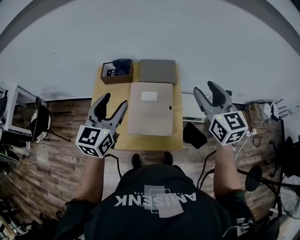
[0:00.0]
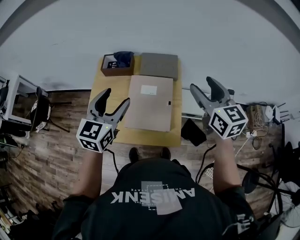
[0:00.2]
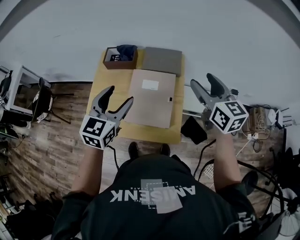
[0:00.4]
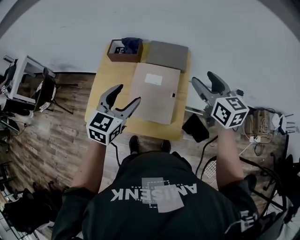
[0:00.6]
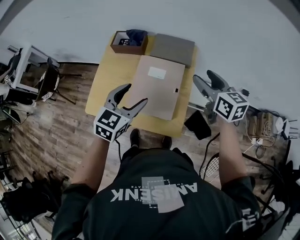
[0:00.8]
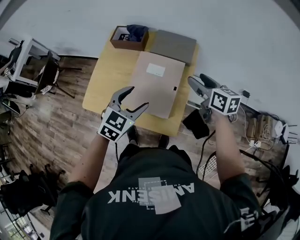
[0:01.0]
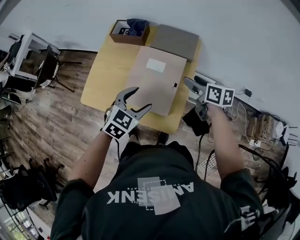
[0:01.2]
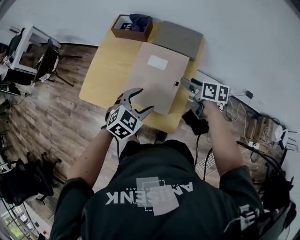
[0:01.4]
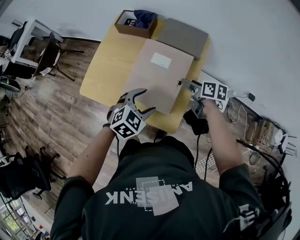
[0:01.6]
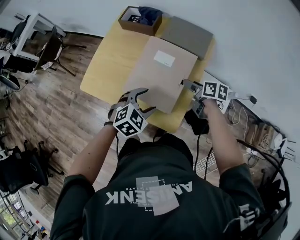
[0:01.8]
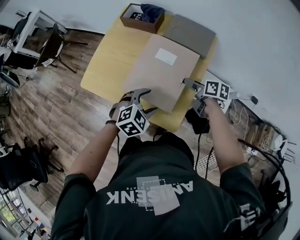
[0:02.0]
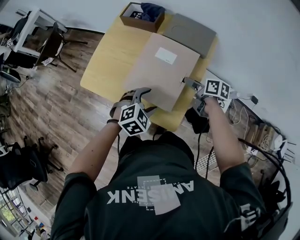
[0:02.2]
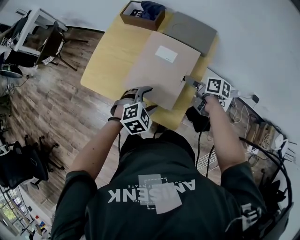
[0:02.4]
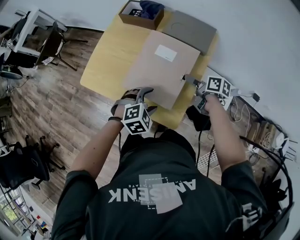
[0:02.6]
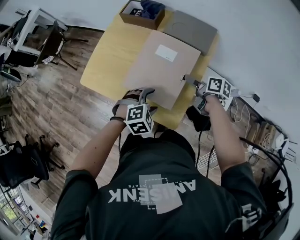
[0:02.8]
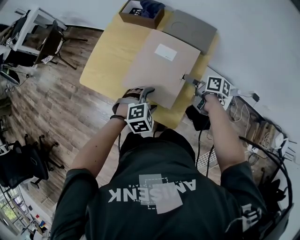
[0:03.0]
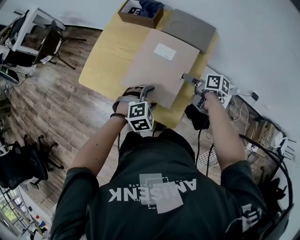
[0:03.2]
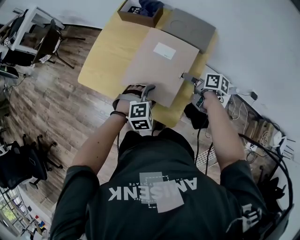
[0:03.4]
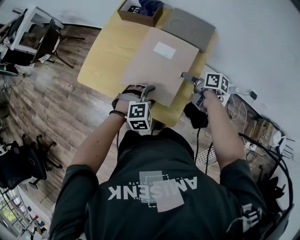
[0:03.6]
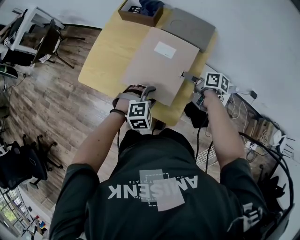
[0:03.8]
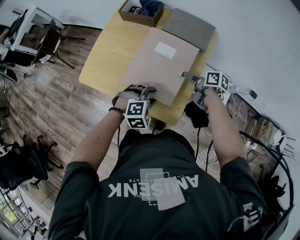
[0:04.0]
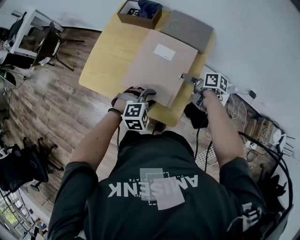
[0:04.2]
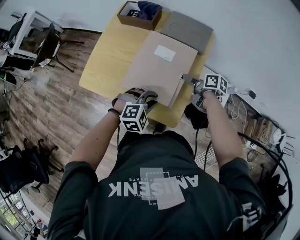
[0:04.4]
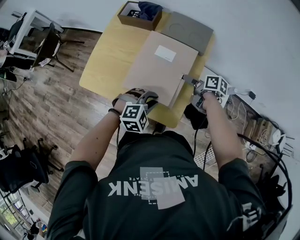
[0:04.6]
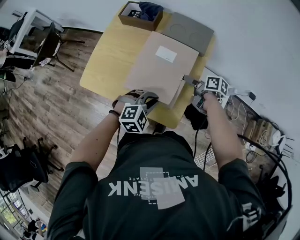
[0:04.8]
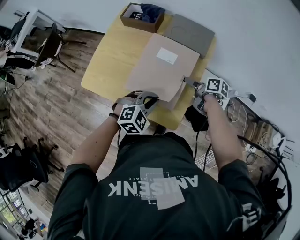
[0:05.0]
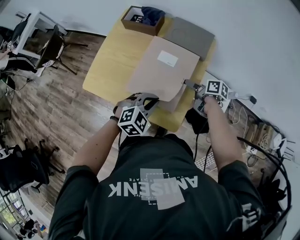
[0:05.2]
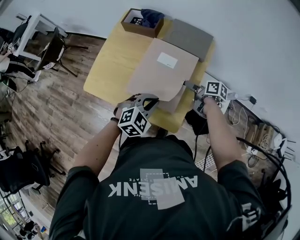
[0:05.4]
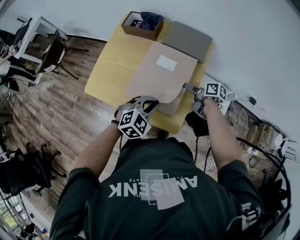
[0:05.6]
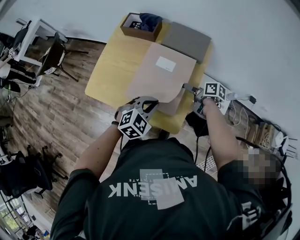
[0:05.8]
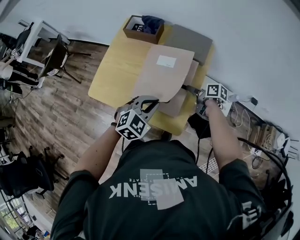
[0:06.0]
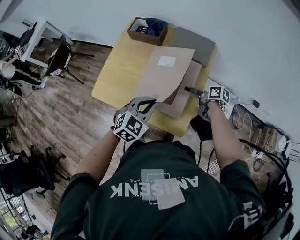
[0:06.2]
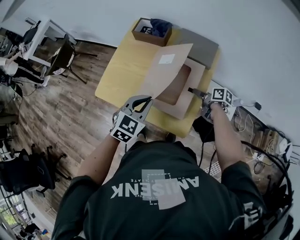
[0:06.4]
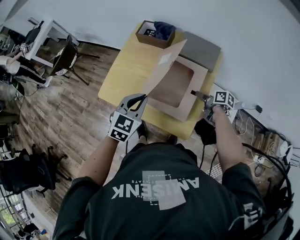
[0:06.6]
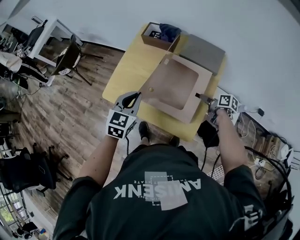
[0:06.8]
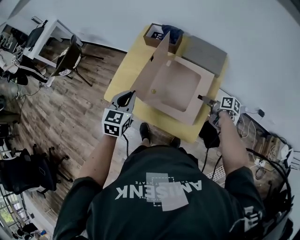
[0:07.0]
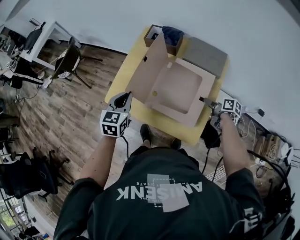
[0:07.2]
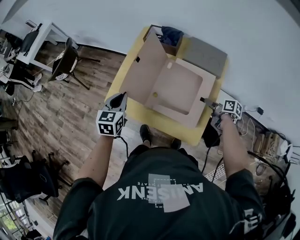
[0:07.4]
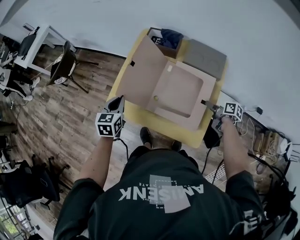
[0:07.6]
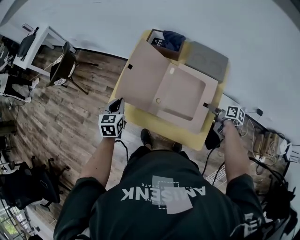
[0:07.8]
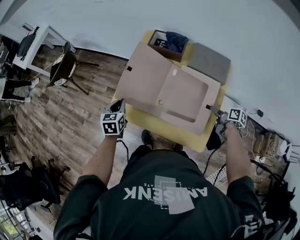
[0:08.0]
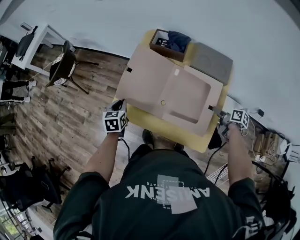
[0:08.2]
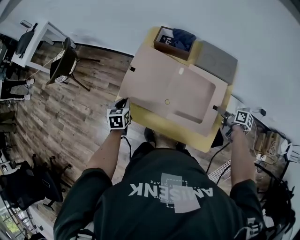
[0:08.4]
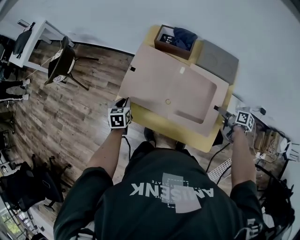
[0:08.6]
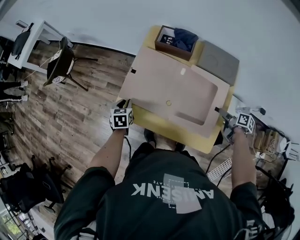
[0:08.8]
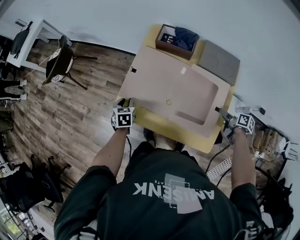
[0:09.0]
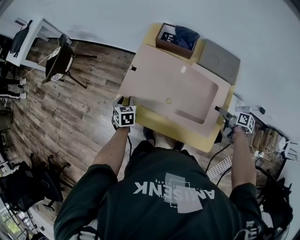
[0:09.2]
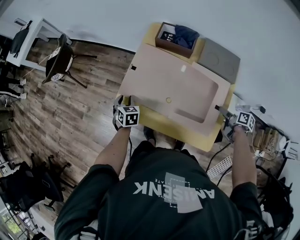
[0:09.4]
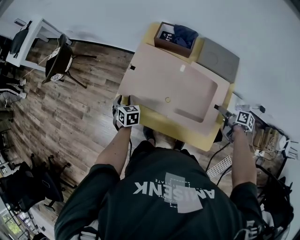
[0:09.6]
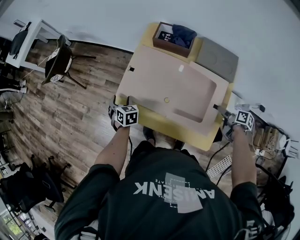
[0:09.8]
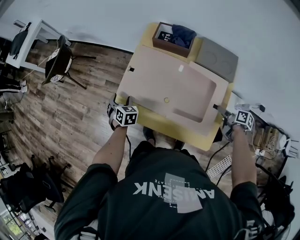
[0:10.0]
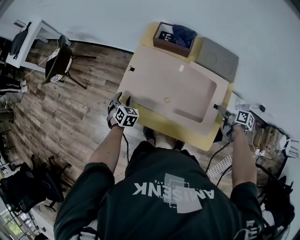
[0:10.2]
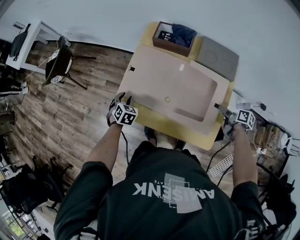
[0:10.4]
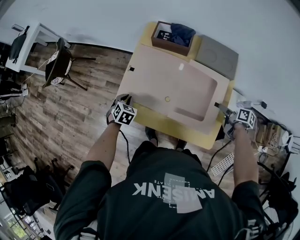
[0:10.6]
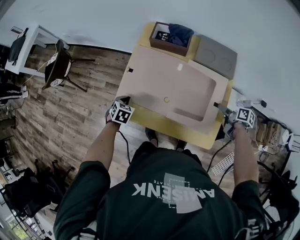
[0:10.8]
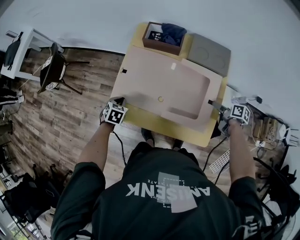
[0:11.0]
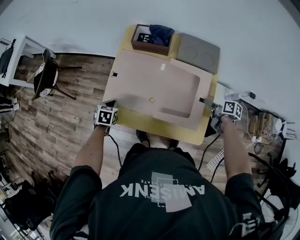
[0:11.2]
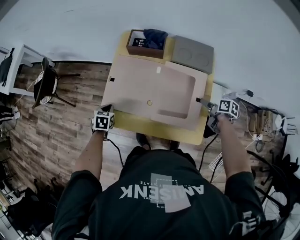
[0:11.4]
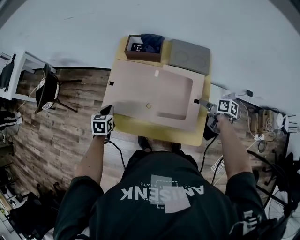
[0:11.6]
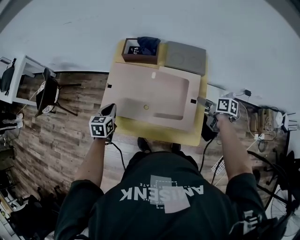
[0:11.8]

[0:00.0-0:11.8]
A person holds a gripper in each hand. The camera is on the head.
0:00.0 to 0:01.4: The right gripper shifts some 30 cm downward, and swivels approximately 60 degrees. The left gripper heads downward and to the right, covering some 25 cm, and angles its fingers downward, by approximately 40 degrees.
0:01.4 to 0:03.0: Both grippers move downward, some 10 cm. The left gripper rotates about 30 degrees.
0:03.0 to 0:04.4: The left gripper closes up.
0:04.4 to 0:06.0: The left gripper is displaced upward by about 10 cm, and rotates approximately 30 degrees.
0:06.0 to 0:07.4: The left gripper travels to the left and forward by approximately 25 cm, and turns by about 50 degrees.
0:07.4 to 0:08.8: The left gripper is displaced downward, to the left and forward by about 20 cm, and rotates some 20 degrees.
0:08.8 to 0:10.4: The left gripper rotates roughly 30 degrees, and opens and closes again.
0:10.4 to 0:11.8: The right gripper is displaced upward by roughly 5 cm, while the left gripper goes approximately 10 cm upward and to the right, rotates approximately 30 degrees, and closes its fingers.

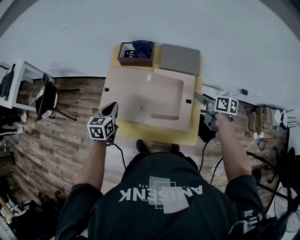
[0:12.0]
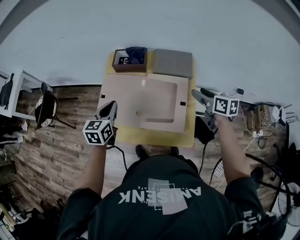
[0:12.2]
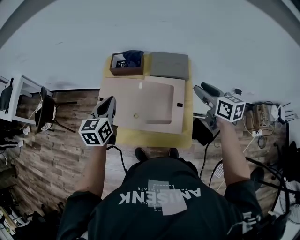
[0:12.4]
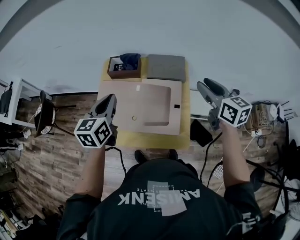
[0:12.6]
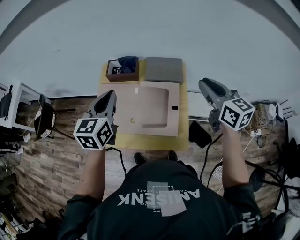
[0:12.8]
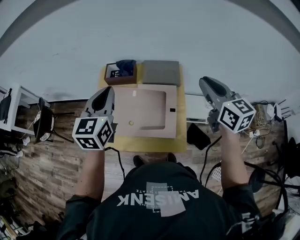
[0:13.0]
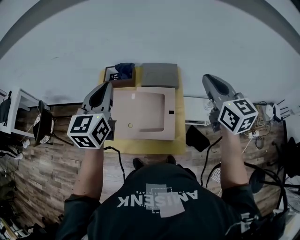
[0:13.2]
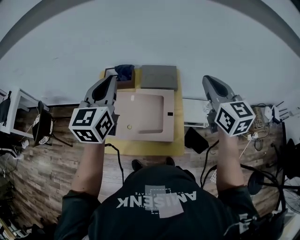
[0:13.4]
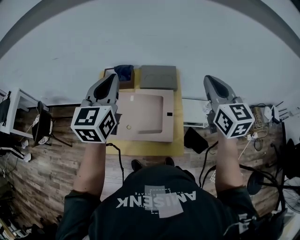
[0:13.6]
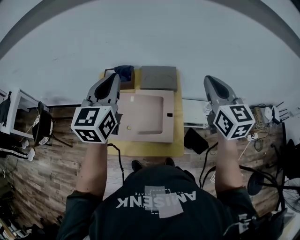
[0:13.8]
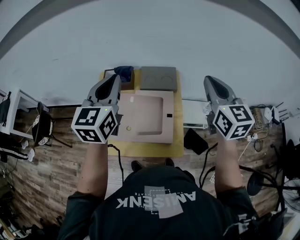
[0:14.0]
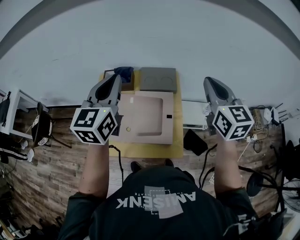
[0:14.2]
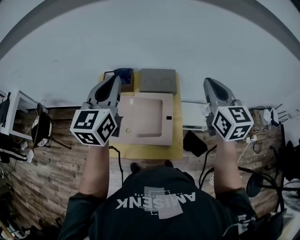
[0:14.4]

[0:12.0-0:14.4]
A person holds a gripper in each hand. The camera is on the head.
0:12.0 to 0:13.2: The right gripper travels upward by about 30 cm, turns by about 50 degrees, and closes up. The left gripper goes about 30 cm upward and to the right, and changes its angle by about 30 degrees.
0:13.2 to 0:14.4: The left gripper ends up approximately 5 cm from where it was.

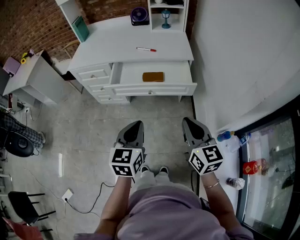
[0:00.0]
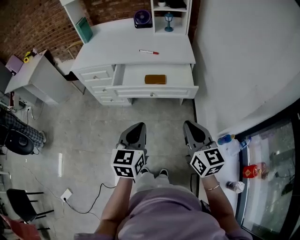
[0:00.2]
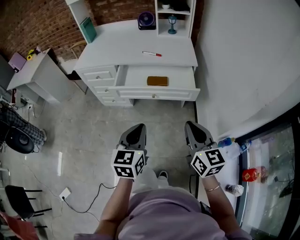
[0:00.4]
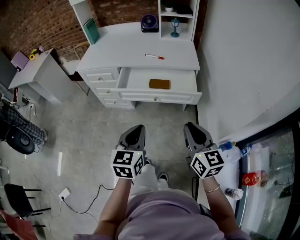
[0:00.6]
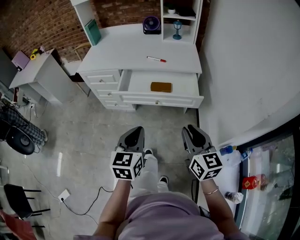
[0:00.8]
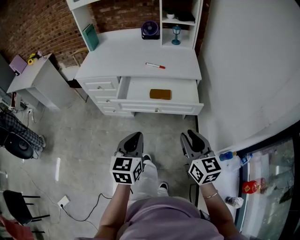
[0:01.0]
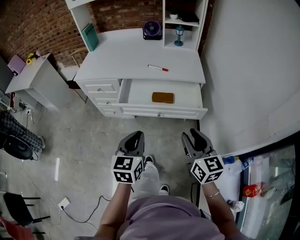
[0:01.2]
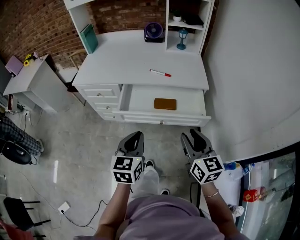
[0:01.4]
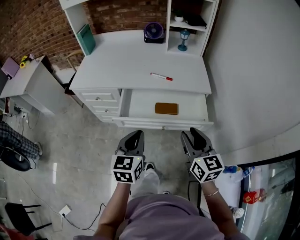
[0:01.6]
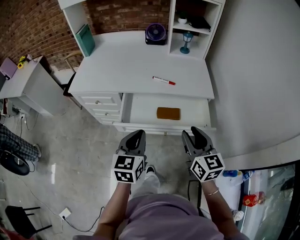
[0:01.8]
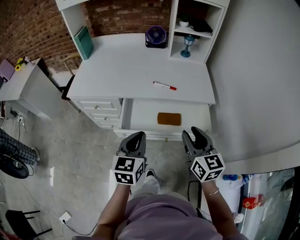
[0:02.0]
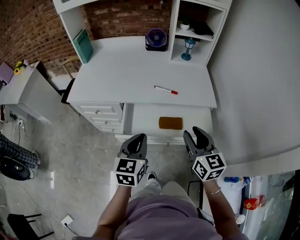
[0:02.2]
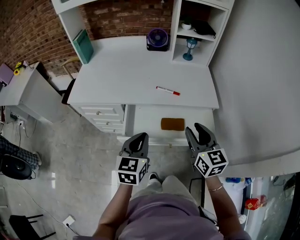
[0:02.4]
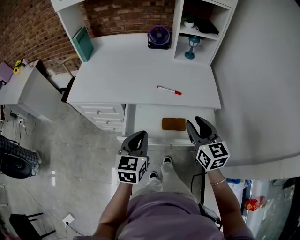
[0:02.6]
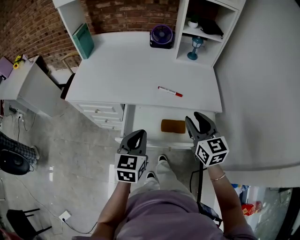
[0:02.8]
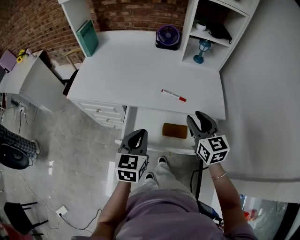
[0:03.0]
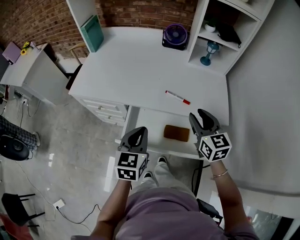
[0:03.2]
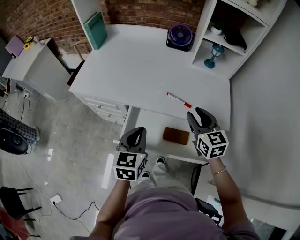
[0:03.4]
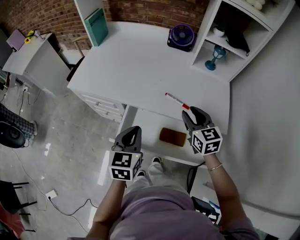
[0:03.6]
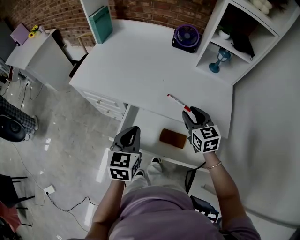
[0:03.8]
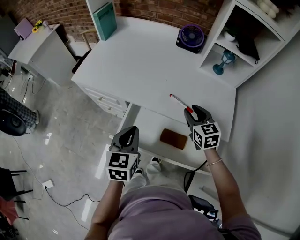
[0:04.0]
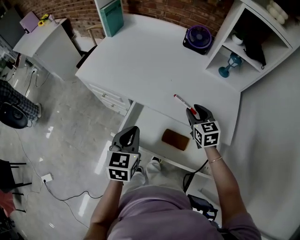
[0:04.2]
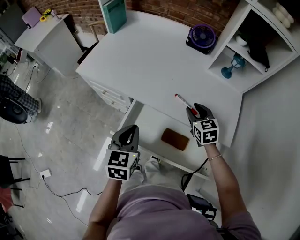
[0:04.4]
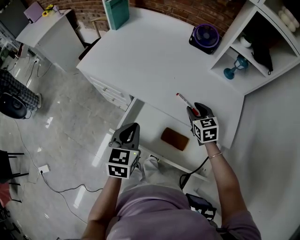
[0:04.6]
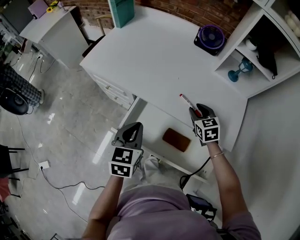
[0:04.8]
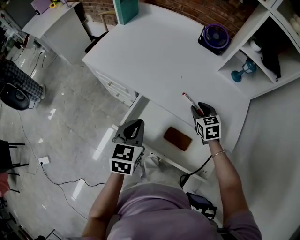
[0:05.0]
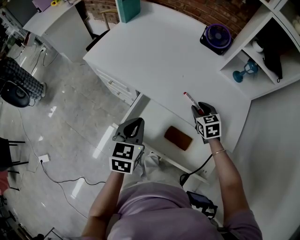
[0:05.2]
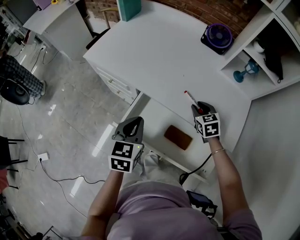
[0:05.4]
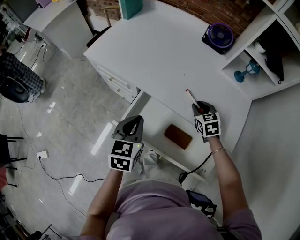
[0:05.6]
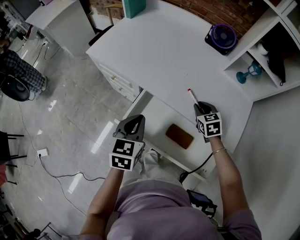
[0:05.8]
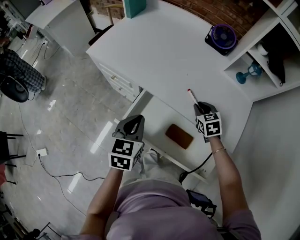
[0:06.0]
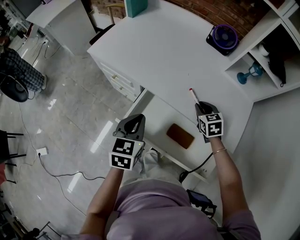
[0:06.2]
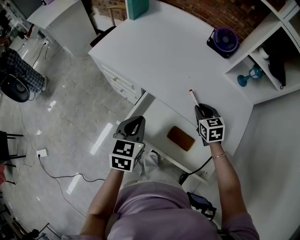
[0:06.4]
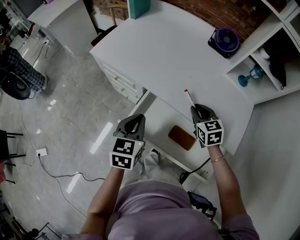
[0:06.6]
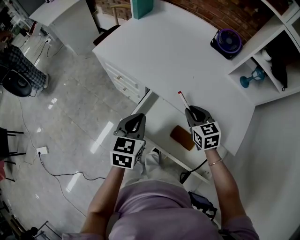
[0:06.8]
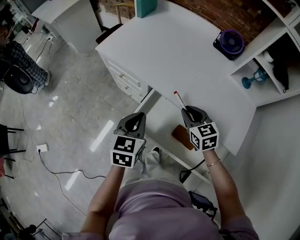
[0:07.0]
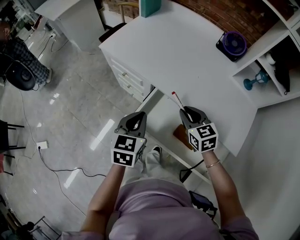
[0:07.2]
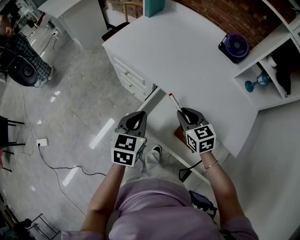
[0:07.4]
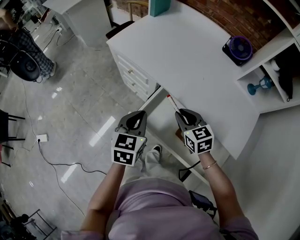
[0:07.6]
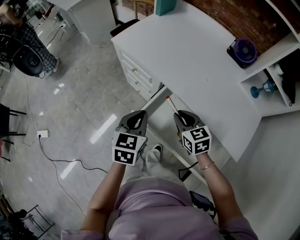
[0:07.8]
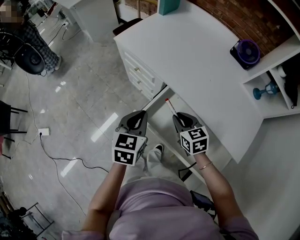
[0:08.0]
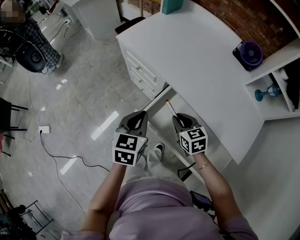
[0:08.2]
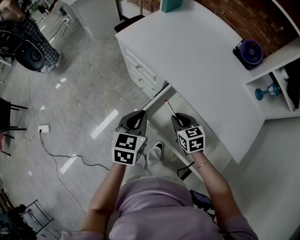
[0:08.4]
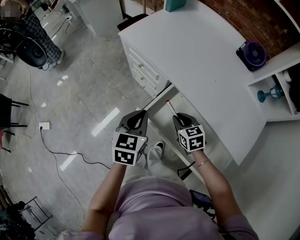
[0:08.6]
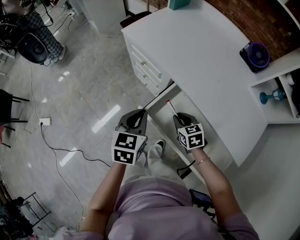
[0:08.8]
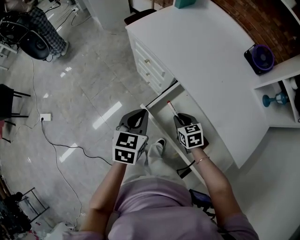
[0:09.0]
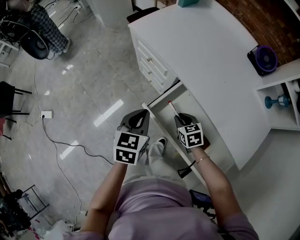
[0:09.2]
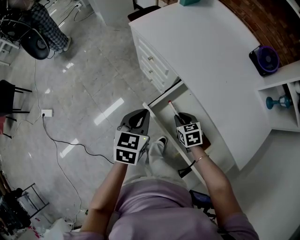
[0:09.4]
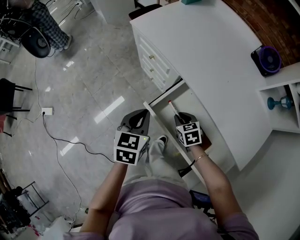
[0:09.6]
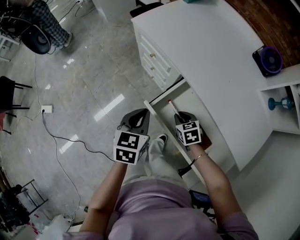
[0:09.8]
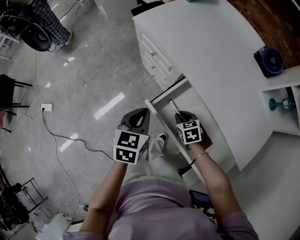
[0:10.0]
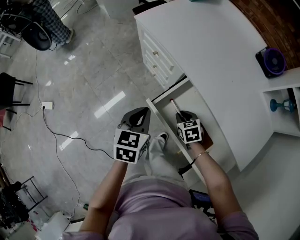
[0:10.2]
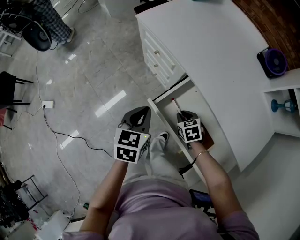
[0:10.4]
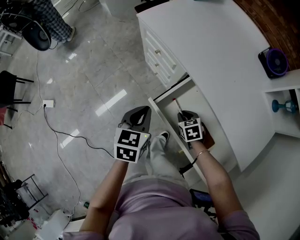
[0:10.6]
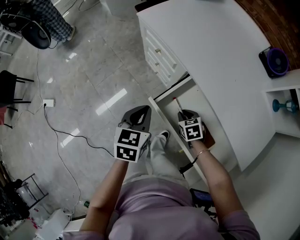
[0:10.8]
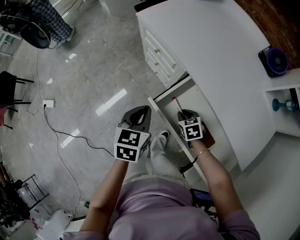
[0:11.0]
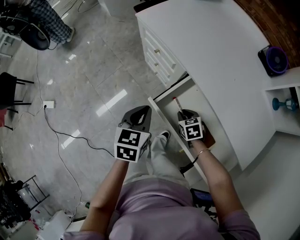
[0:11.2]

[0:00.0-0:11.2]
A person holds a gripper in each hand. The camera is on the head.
0:00.0 to 0:01.6: Both grippers travel together forward, approximately 20 cm. The right gripper opens.
0:01.6 to 0:03.2: Both grippers move forward, roughly 25 cm.
0:03.2 to 0:04.8: The left gripper ends up about 5 cm from where it was. The right gripper moves downward and forward, some 20 cm, and turns by about 30 degrees.
0:04.8 to 0:06.4: There are only small adjustments of the grippers.
0:06.4 to 0:08.0: The left gripper moves to the left, some 5 cm. Meanwhile the right gripper is displaced to the left by some 20 cm, and changes its angle by roughly 20 degrees.
0:08.0 to 0:09.6: The right gripper goes roughly 10 cm downward; the left gripper changes place by about 5 cm.
0:09.6 to 0:11.2: There are only small adjustments of the grippers.
